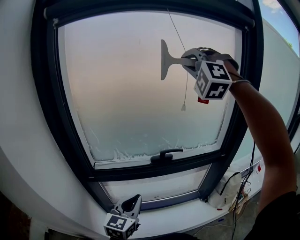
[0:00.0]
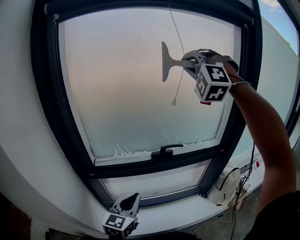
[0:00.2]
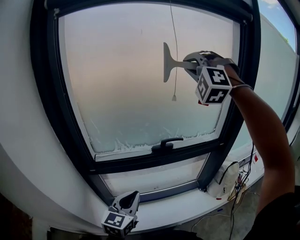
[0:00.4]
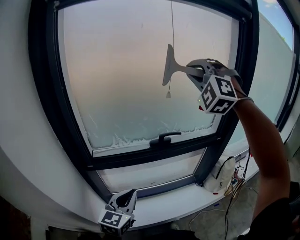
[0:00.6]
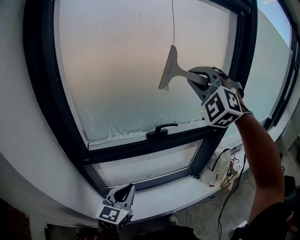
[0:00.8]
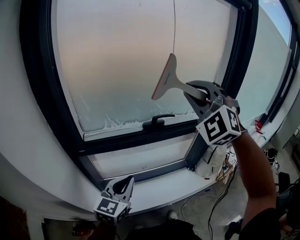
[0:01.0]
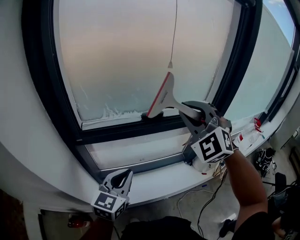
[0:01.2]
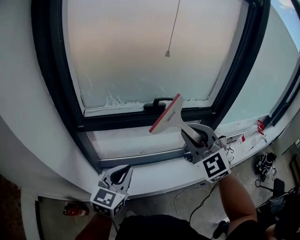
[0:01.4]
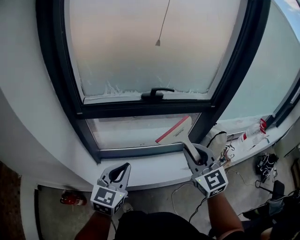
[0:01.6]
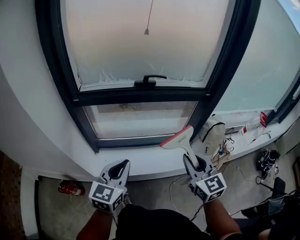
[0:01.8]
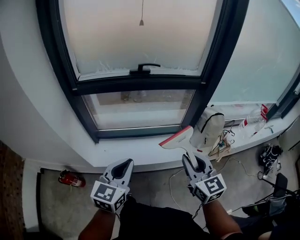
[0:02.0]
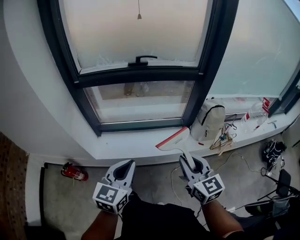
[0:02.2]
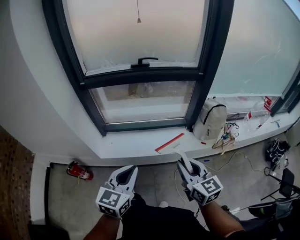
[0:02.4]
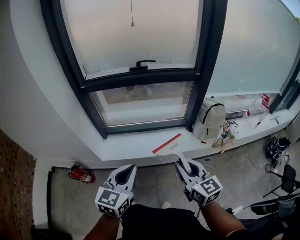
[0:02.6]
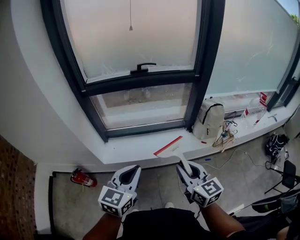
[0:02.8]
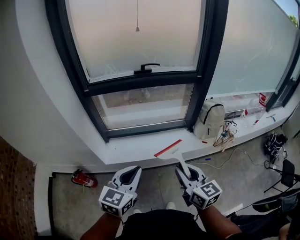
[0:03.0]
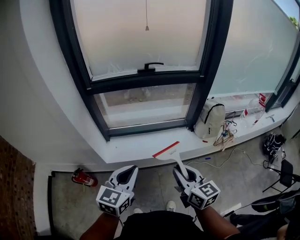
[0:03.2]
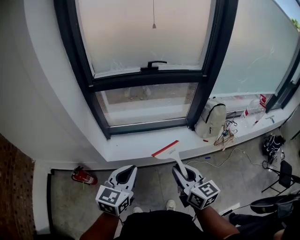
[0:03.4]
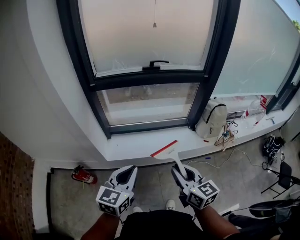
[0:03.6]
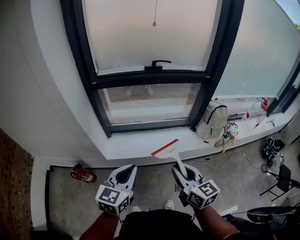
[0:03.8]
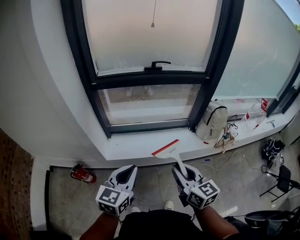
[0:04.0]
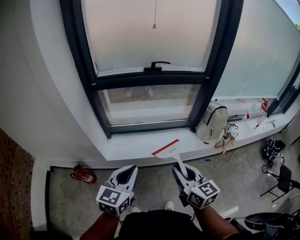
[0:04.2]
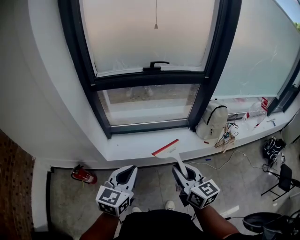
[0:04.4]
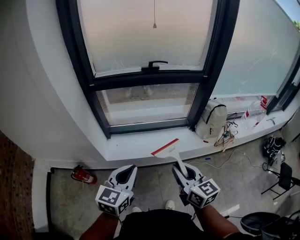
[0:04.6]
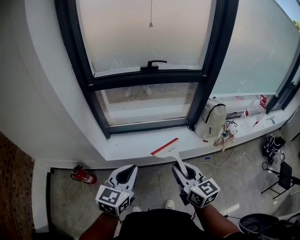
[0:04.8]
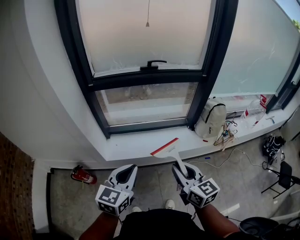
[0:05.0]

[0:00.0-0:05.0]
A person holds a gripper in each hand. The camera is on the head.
0:00.0 to 0:01.6: The left gripper moves approximately 15 cm.
0:01.6 to 0:03.4: The left gripper ends up roughly 25 cm from where it was.

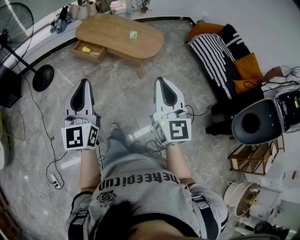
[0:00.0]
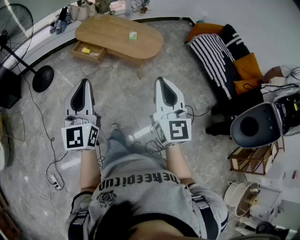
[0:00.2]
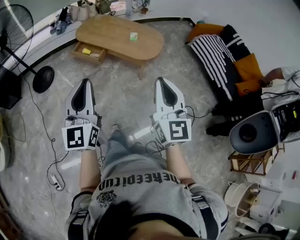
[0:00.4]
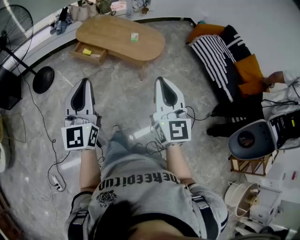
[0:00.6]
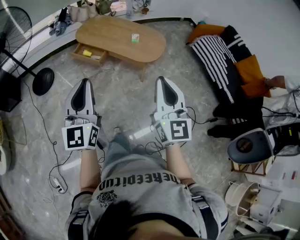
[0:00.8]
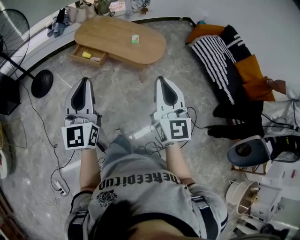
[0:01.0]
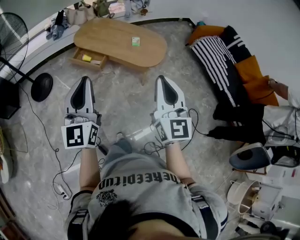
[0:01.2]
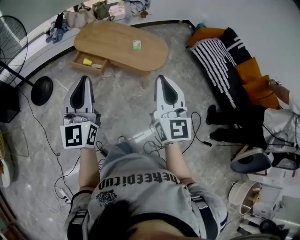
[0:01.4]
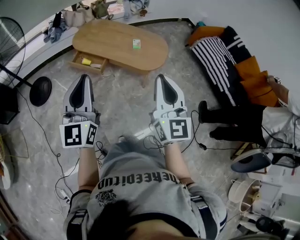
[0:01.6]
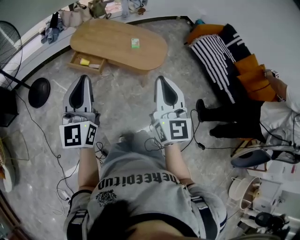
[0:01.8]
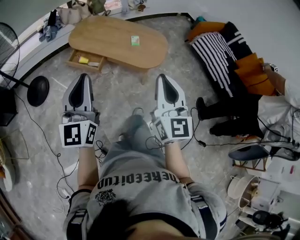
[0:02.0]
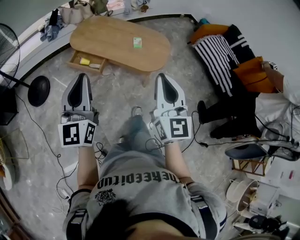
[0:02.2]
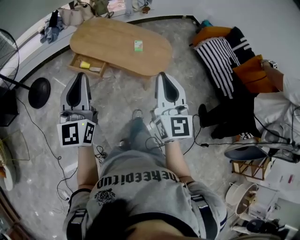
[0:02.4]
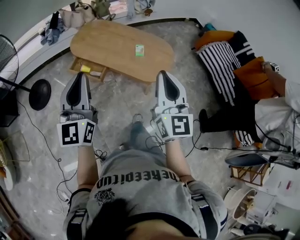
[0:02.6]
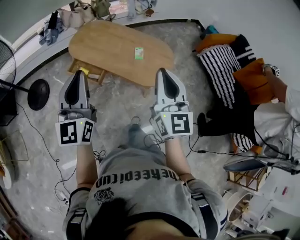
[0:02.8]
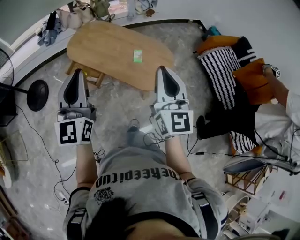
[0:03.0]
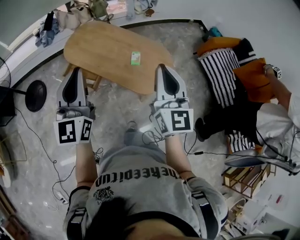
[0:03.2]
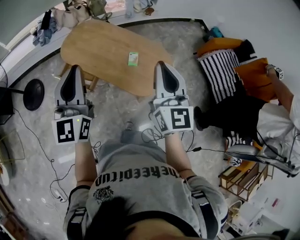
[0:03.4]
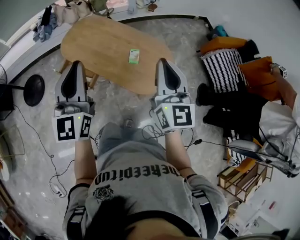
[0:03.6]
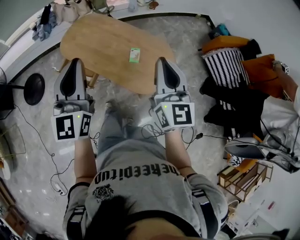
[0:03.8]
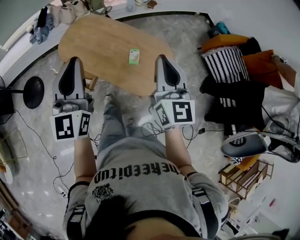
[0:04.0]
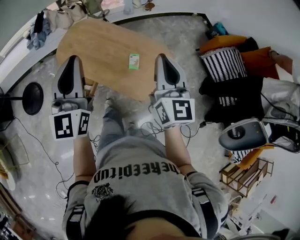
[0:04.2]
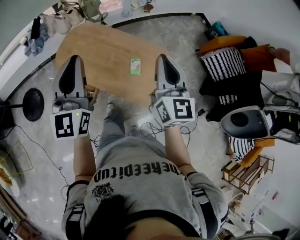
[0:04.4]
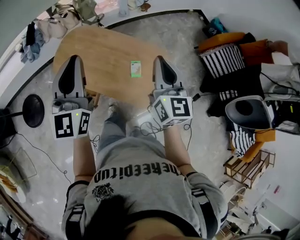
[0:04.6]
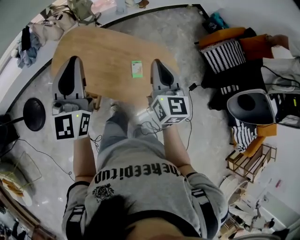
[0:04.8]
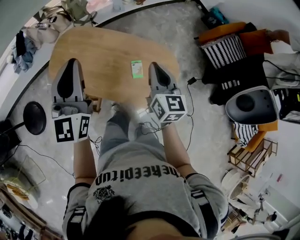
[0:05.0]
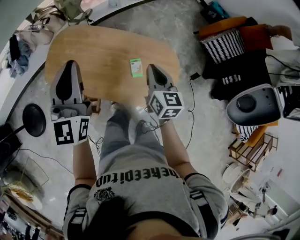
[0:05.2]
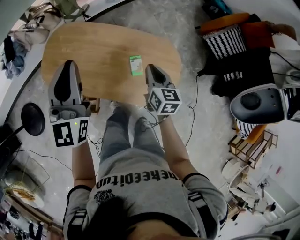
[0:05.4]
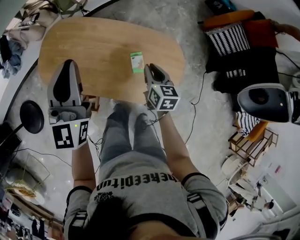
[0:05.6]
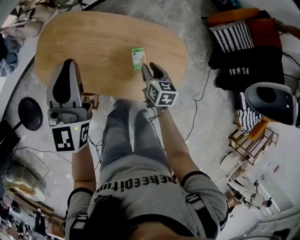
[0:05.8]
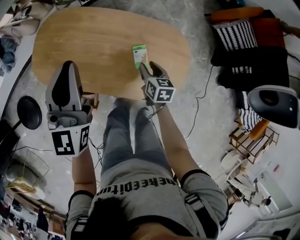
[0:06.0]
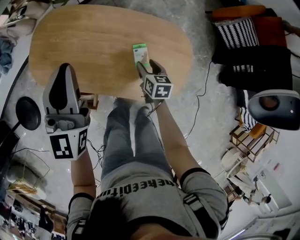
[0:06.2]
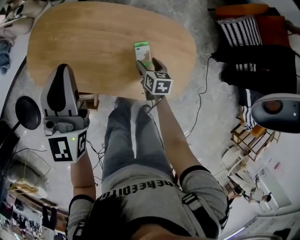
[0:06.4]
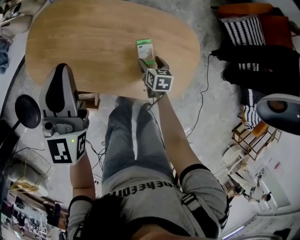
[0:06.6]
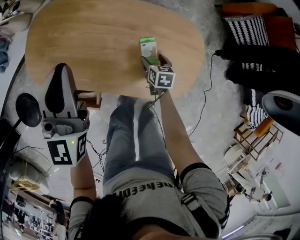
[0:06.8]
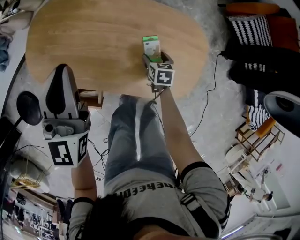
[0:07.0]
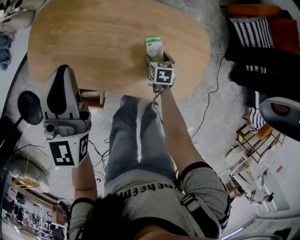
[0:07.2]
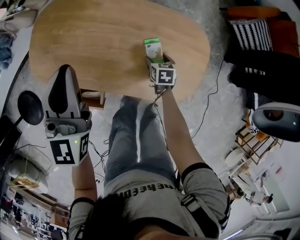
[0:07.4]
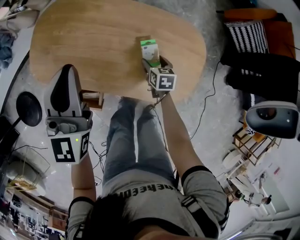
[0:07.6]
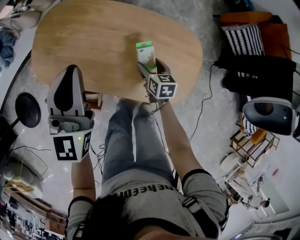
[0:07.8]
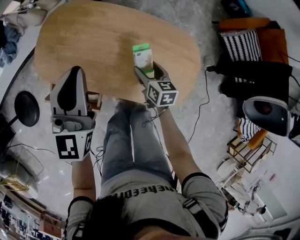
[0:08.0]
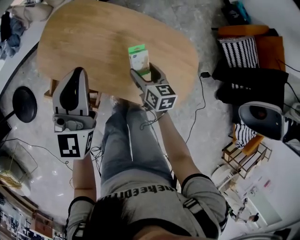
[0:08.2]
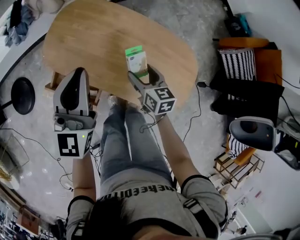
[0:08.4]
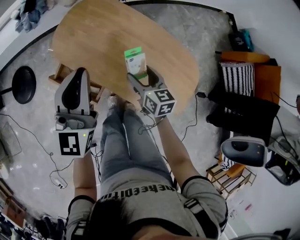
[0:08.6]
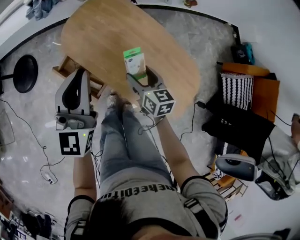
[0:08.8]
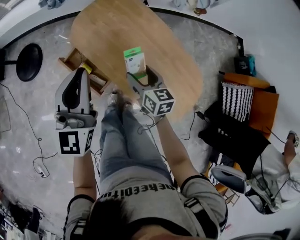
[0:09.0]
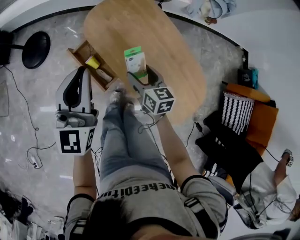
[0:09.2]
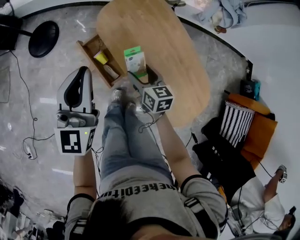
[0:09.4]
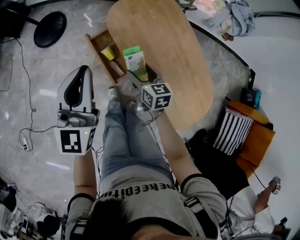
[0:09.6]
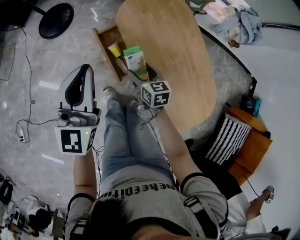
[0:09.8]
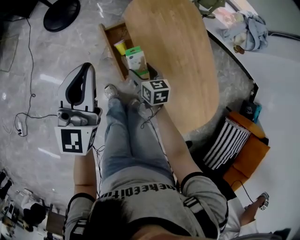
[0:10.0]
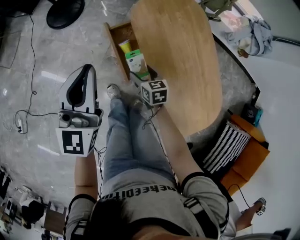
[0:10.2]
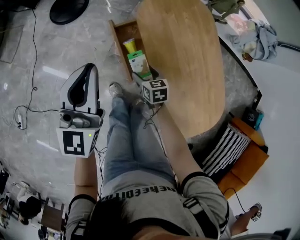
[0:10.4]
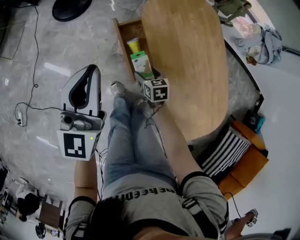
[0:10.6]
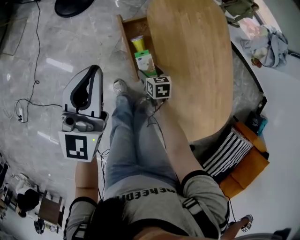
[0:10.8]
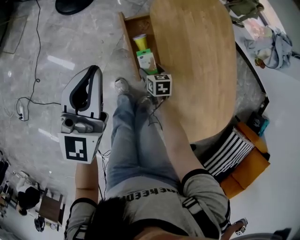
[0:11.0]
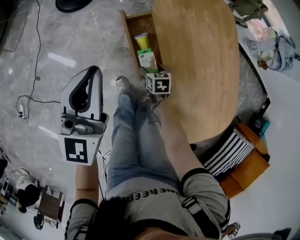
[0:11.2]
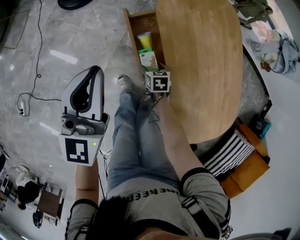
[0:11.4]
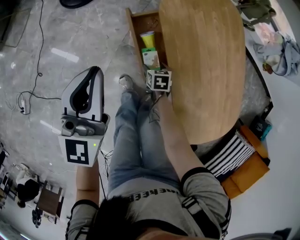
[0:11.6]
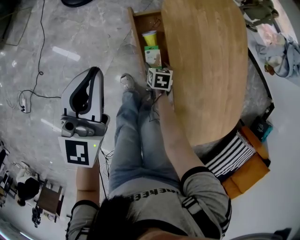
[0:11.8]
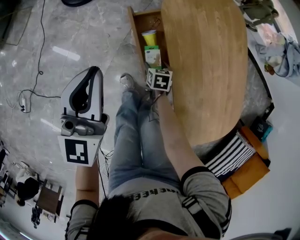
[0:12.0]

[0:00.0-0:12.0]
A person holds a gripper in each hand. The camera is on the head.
0:00.0 to 0:01.6: Both grippers move forward and to the left, approximately 20 cm.
0:01.6 to 0:03.0: The grippers both shift forward by some 30 cm.
0:03.0 to 0:04.4: The two grippers go approximately 25 cm forward.
0:04.4 to 0:06.0: The right gripper travels downward by approximately 40 cm, tips its fingers downward by about 50 degrees, and opens up; the left gripper moves forward and downward, roughly 30 cm.
0:06.0 to 0:07.6: The left gripper shifts about 5 cm downward. The right gripper moves downward, about 10 cm, and opens up.
0:07.6 to 0:09.0: The right gripper goes some 20 cm upward, and turns by some 40 degrees; the left gripper ends up about 25 cm from where it was, and changes its angle by about 30 degrees.
0:09.0 to 0:10.4: The left gripper shifts by some 20 cm, and changes its angle by some 20 degrees. Meanwhile the right gripper changes place by roughly 25 cm, and swivels some 40 degrees.
0:10.4 to 0:12.0: The right gripper travels downward by approximately 15 cm, while the left gripper heads downward, covering about 10 cm.

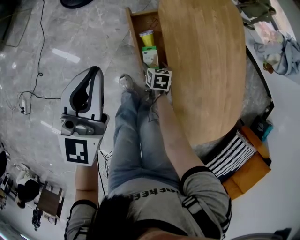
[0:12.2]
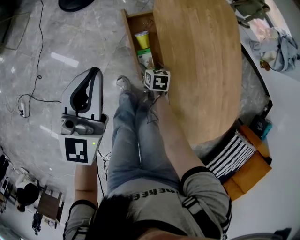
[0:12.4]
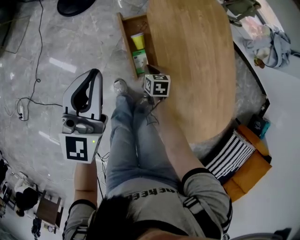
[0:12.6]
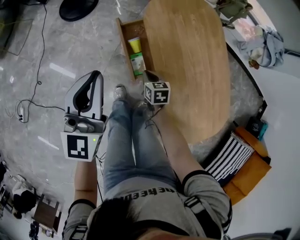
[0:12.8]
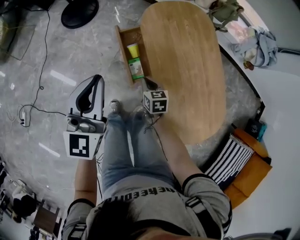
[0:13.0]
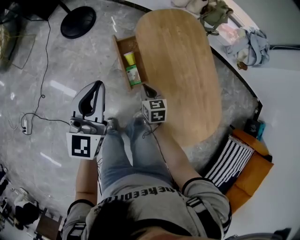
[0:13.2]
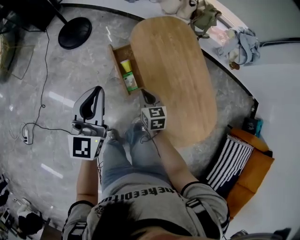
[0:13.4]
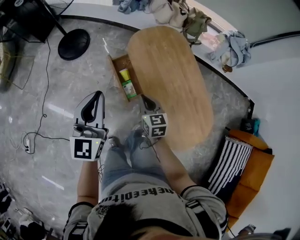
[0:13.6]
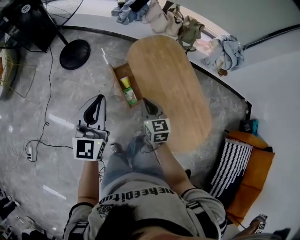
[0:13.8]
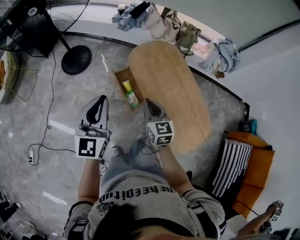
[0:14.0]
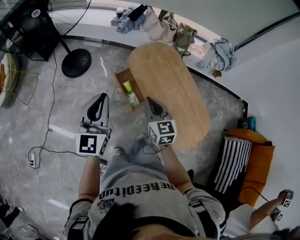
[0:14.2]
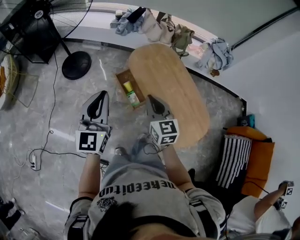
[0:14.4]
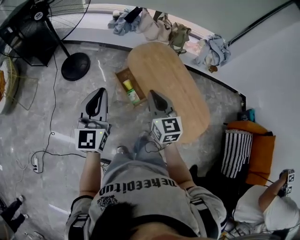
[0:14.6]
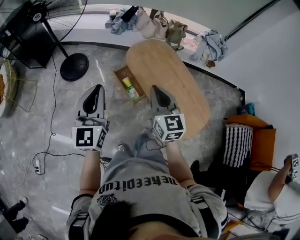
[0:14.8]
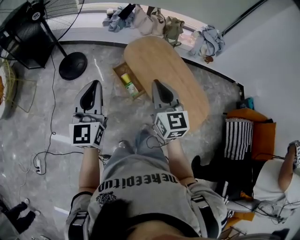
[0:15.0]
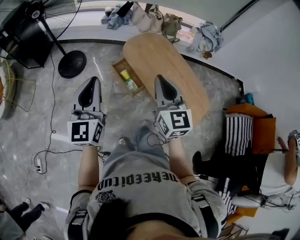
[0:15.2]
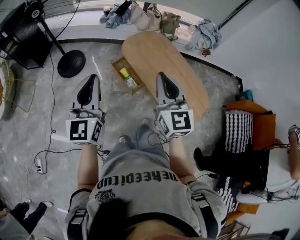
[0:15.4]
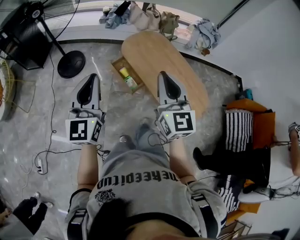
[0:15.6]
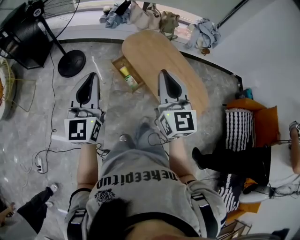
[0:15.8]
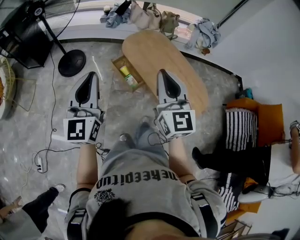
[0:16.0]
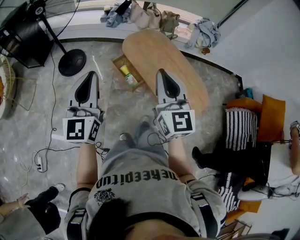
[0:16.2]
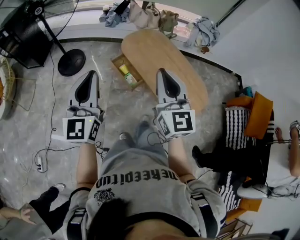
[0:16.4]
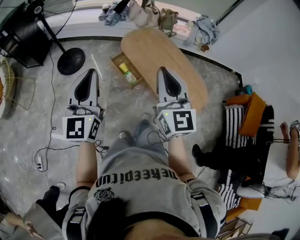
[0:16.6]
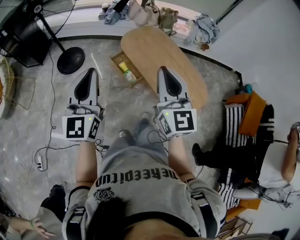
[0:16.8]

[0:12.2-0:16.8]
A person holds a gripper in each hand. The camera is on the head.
0:12.2 to 0:13.8: The left gripper moves upward and backward, roughly 20 cm, while the right gripper travels upward by some 40 cm, tips its fingers upward by about 40 degrees, and closes.
0:13.8 to 0:15.2: The left gripper travels backward, upward and to the left by roughly 15 cm, while the right gripper heads upward and backward, covering roughly 30 cm, and changes its angle by roughly 30 degrees.
0:15.2 to 0:16.8: The left gripper travels backward by roughly 5 cm. Meanwhile the right gripper is displaced backward and upward by some 10 cm.

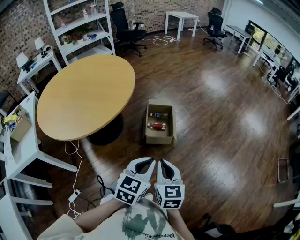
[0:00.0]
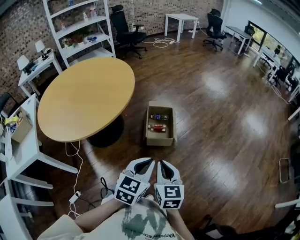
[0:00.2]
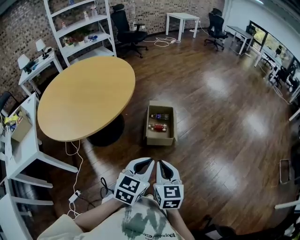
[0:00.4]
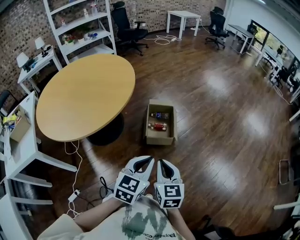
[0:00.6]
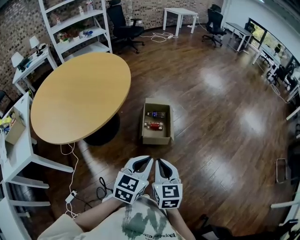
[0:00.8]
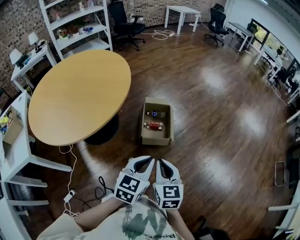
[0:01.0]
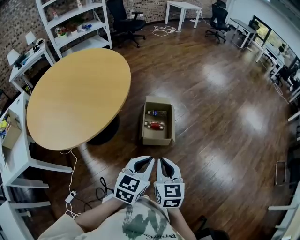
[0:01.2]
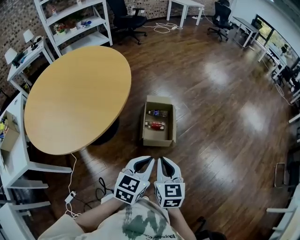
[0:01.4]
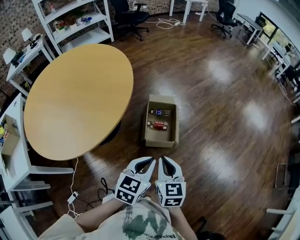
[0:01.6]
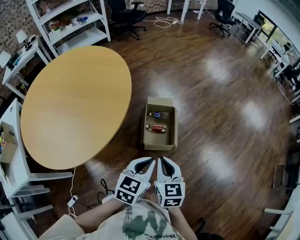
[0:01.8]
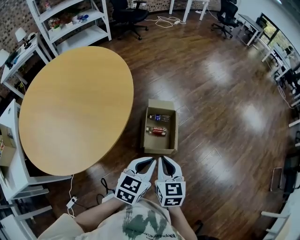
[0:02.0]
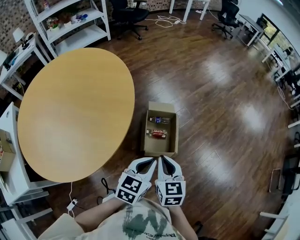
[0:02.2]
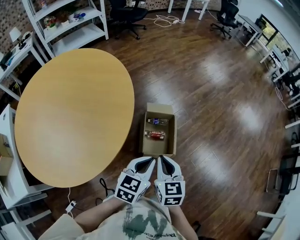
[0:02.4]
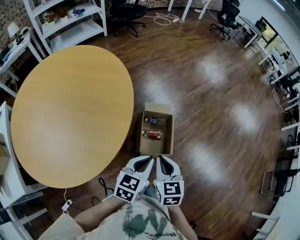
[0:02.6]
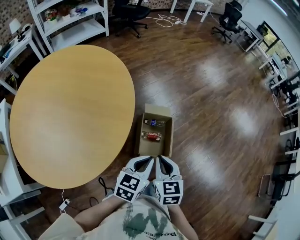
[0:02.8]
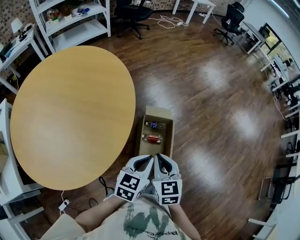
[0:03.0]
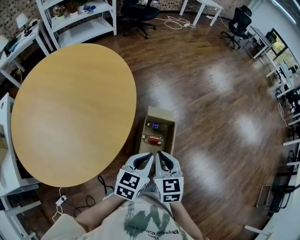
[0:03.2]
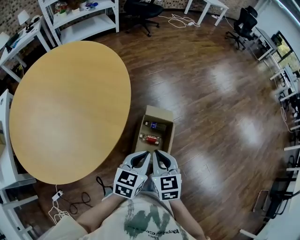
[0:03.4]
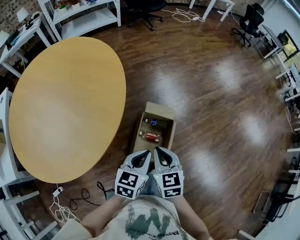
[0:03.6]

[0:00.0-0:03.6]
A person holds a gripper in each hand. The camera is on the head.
0:00.0 to 0:01.8: Both grippers move forward, roughly 25 cm.
0:01.8 to 0:03.6: Both grippers travel together forward, approximately 25 cm. The right gripper rotates some 20 degrees.
